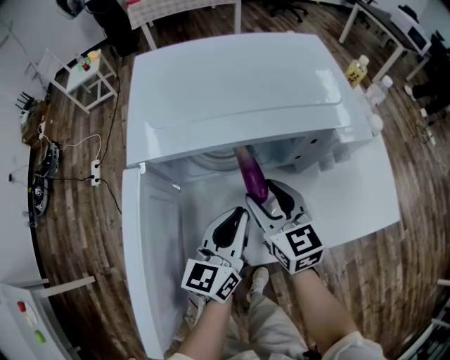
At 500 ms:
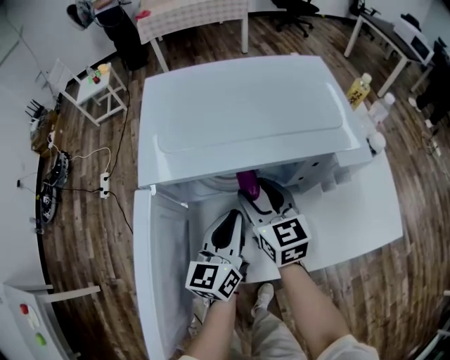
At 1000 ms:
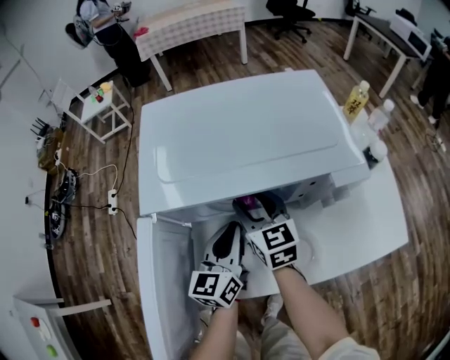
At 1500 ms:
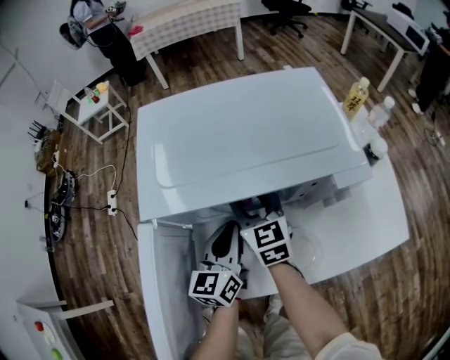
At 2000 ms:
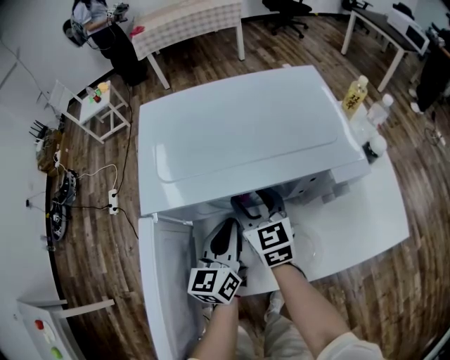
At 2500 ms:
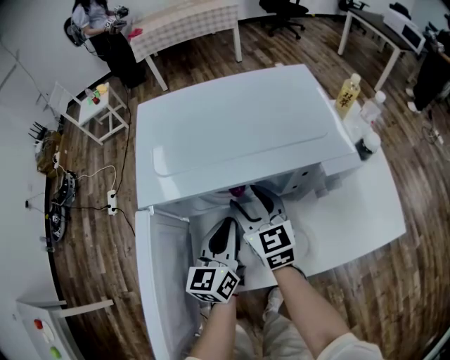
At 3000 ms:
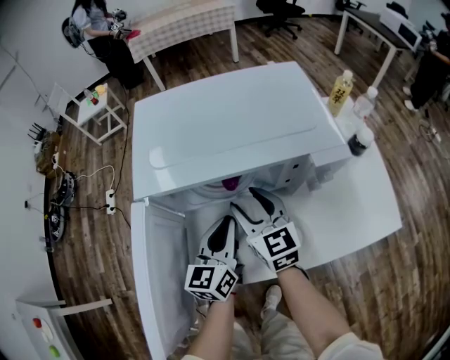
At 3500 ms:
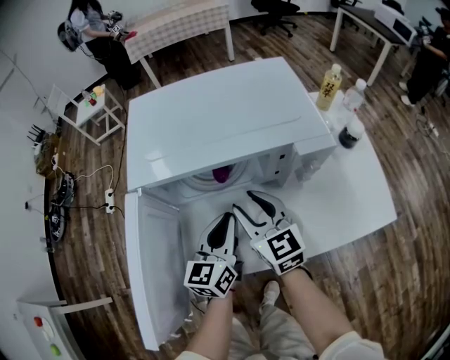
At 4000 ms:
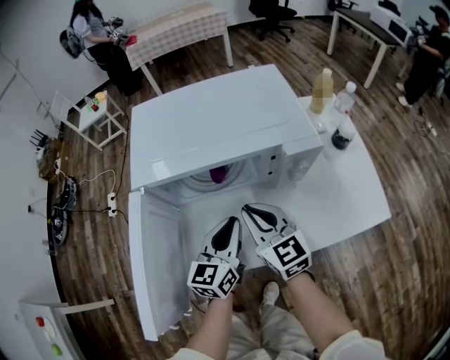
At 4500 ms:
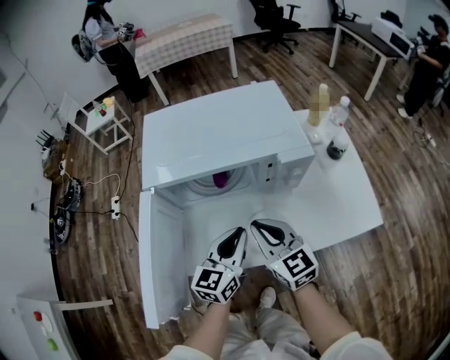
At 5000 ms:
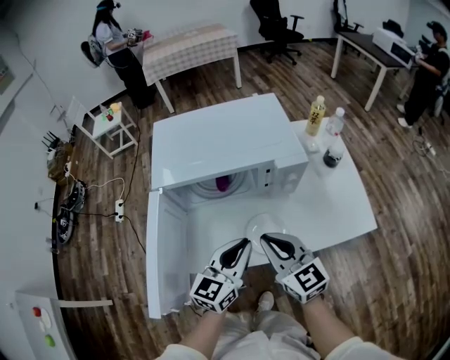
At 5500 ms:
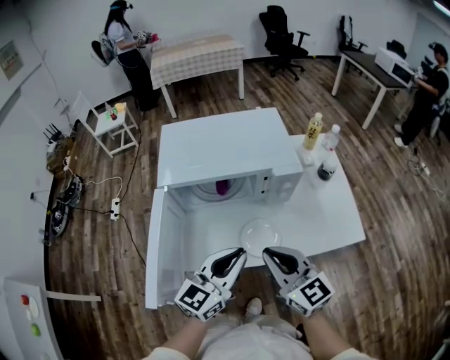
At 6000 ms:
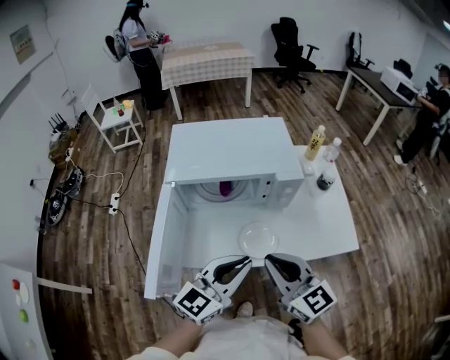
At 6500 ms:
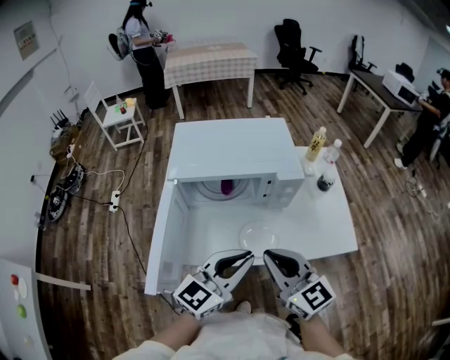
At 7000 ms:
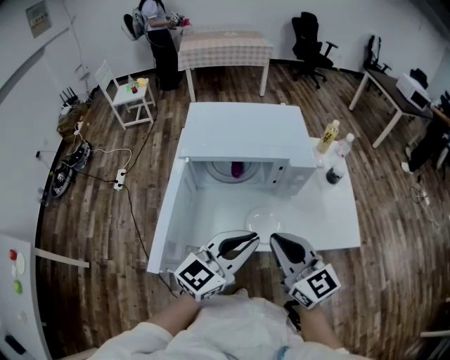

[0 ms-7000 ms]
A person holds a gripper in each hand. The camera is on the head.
0 ms to 2000 ms: Both grippers move forward, about 10 cm.
2000 ms to 3500 ms: The right gripper shifts roughly 10 cm backward, while the left gripper travels backward by some 5 cm.
3500 ms to 5000 ms: Both grippers move backward, upward and to the right, about 15 cm. The right gripper closes its fingers.
5000 ms to 7000 ms: The grippers both shift upward and backward by about 10 cm.

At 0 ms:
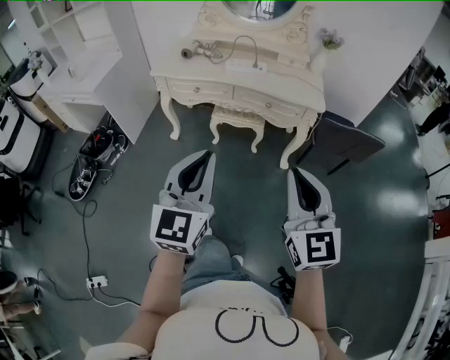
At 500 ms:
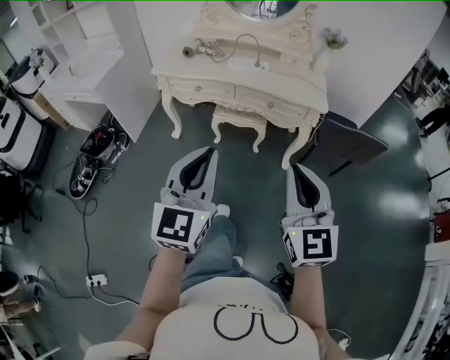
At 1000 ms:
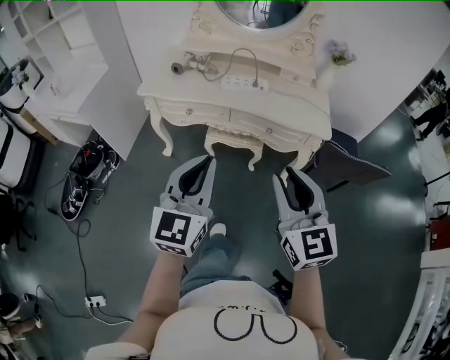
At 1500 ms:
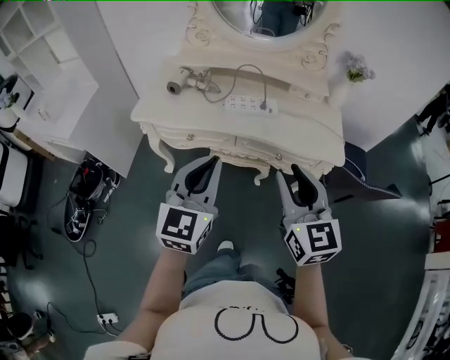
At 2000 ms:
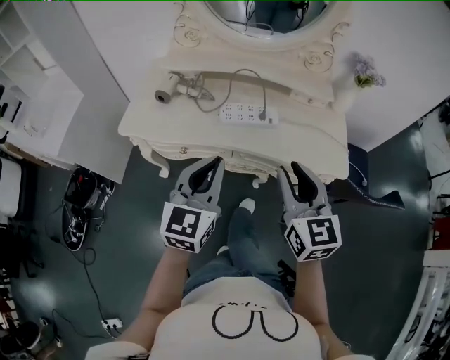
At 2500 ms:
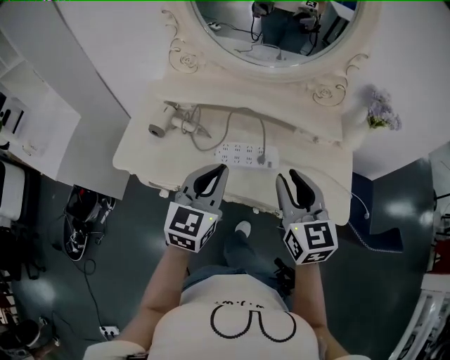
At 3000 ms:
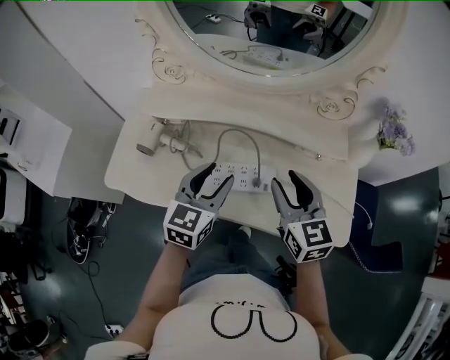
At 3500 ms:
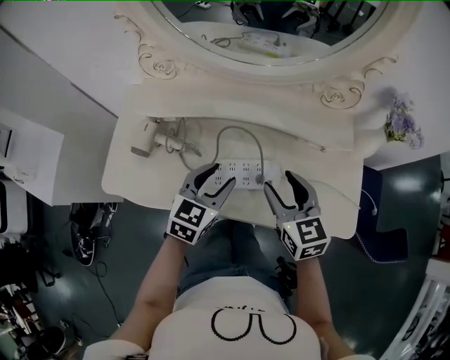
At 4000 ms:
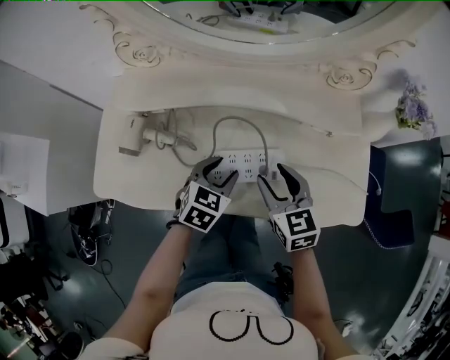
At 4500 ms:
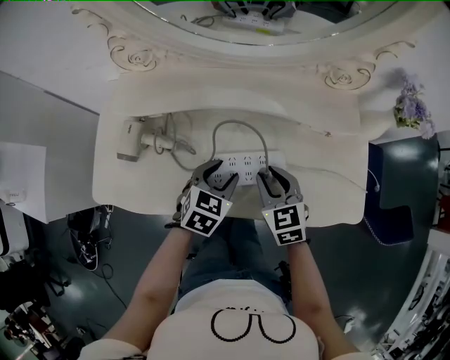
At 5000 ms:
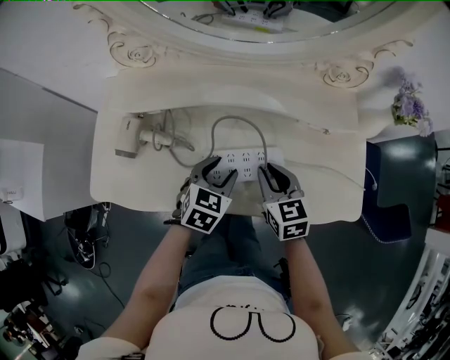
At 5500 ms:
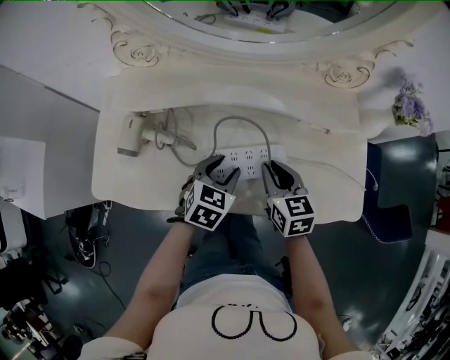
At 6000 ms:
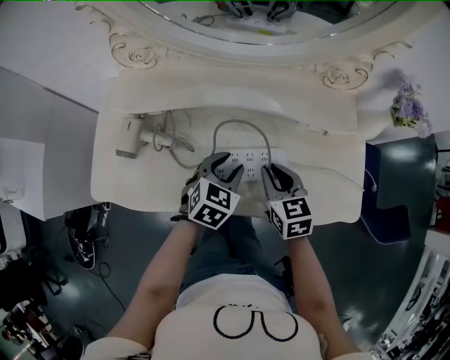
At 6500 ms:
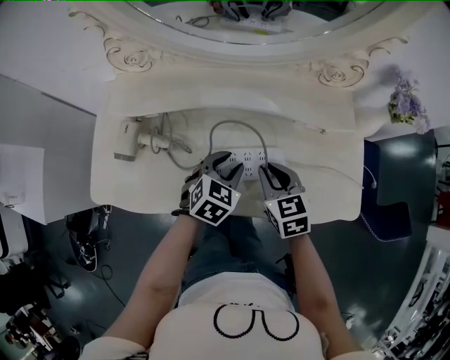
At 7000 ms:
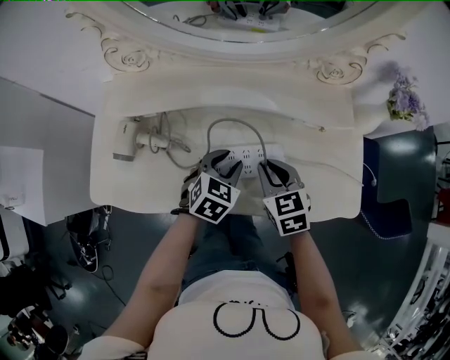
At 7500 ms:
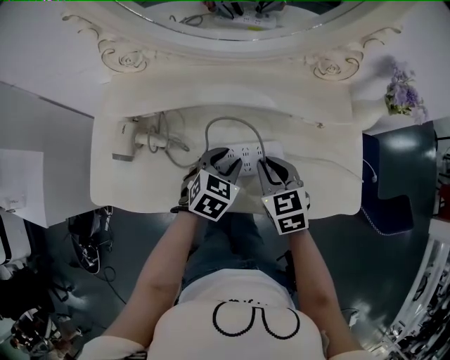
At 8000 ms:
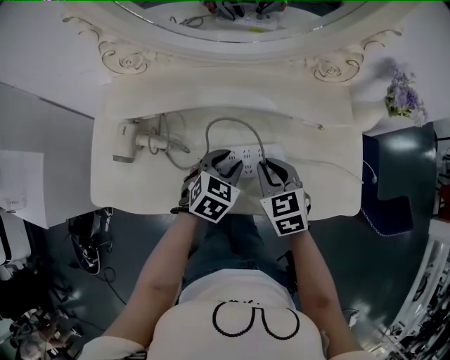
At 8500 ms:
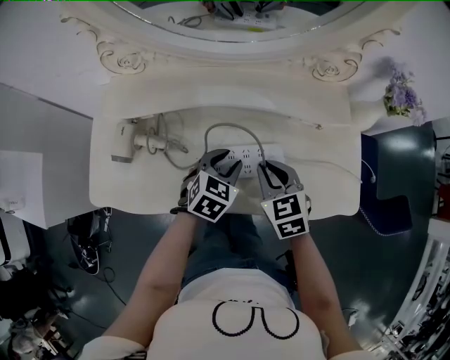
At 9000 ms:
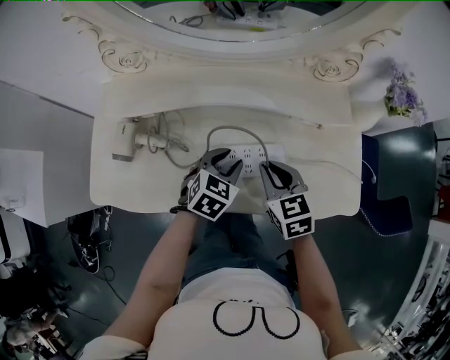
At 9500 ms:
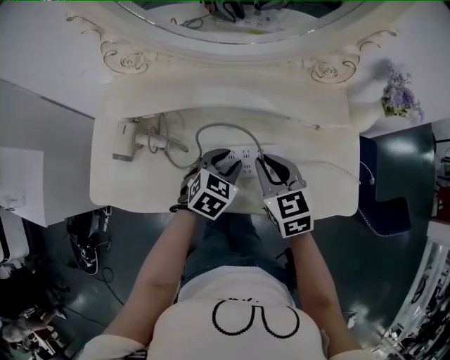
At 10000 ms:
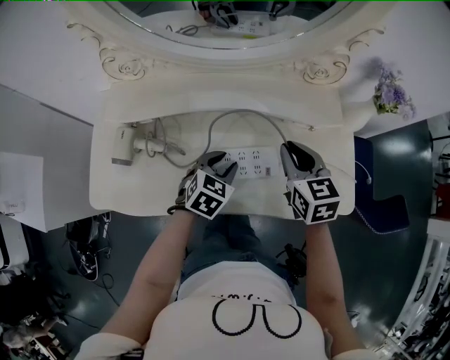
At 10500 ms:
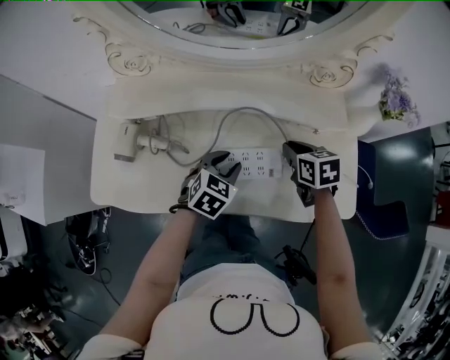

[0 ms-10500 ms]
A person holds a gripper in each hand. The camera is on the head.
0 ms to 2000 ms: The two grippers travel together, forward, some 50 cm. The right gripper opens.
2000 ms to 4000 ms: Both grippers travel together forward and downward, about 35 cm. The left gripper points its fingers roughly 40 degrees further downward, and opens up, while the right gripper swivels some 20 degrees, and opens its fingers.
4000 ms to 6500 ms: The right gripper closes.
6500 ms to 8500 ms: The grippers move only a little.
8500 ms to 10500 ms: The right gripper moves forward and to the right, some 10 cm, moves about 5 cm upward and comes back, and turns by roughly 20 degrees.

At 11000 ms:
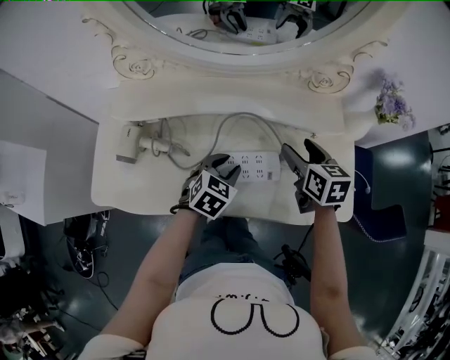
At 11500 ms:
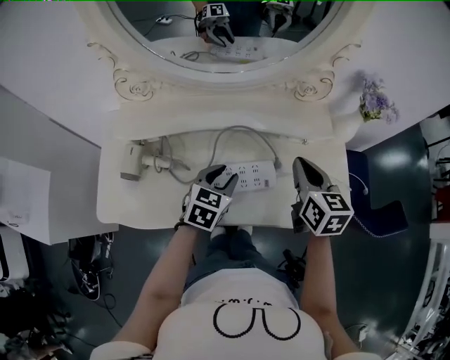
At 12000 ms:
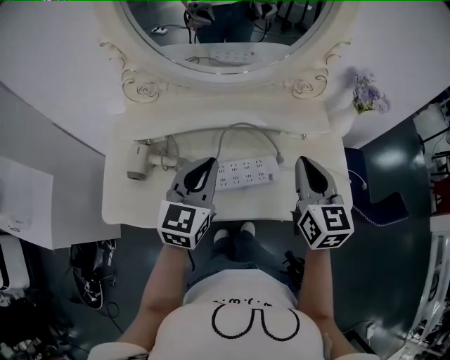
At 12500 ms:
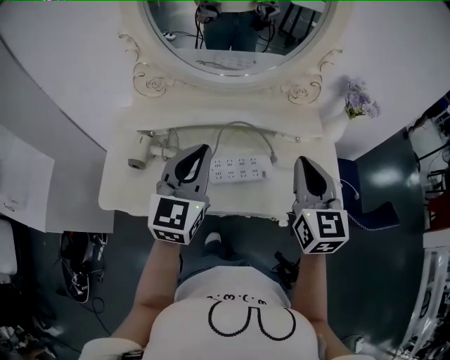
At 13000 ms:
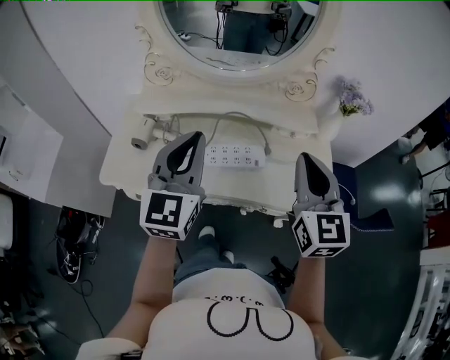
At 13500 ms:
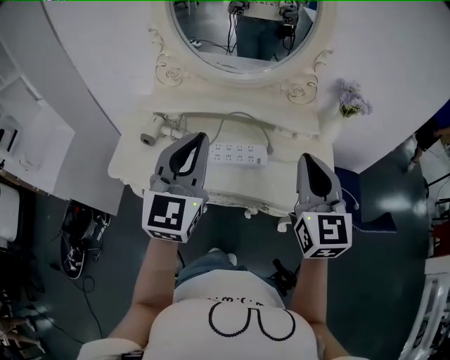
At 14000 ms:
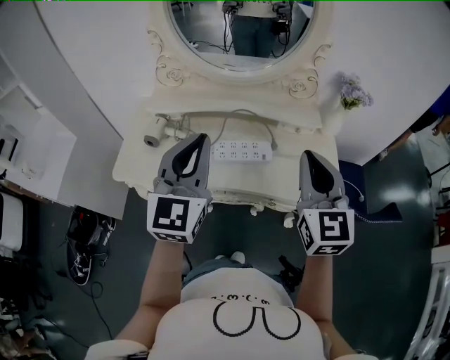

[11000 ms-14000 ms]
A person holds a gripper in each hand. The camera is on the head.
11000 ms to 12500 ms: The right gripper heads upward and backward, covering some 25 cm, turns by roughly 30 degrees, and closes its fingers; the left gripper shifts some 25 cm upward, points its fingers roughly 40 degrees further upward, and closes up.
12500 ms to 14000 ms: Both grippers move backward and upward, about 15 cm.

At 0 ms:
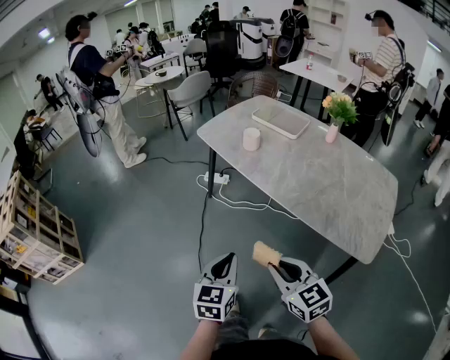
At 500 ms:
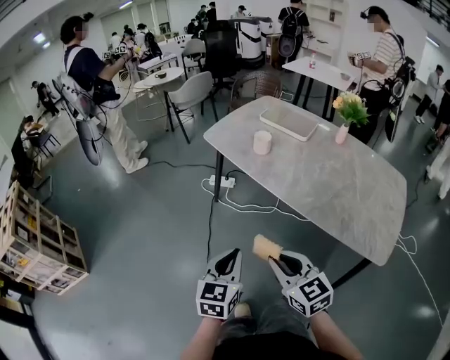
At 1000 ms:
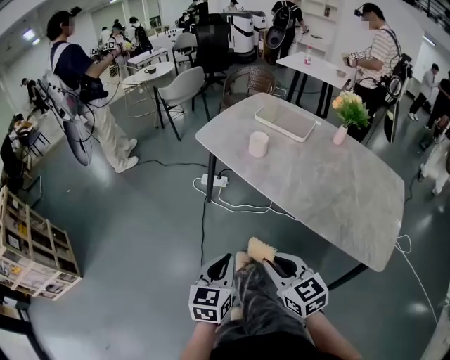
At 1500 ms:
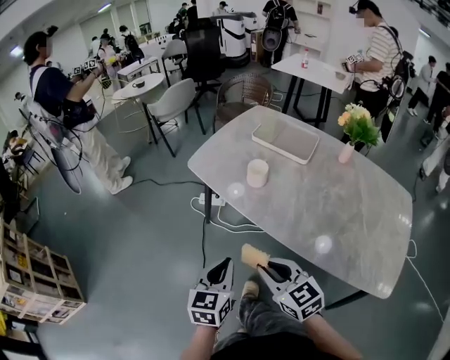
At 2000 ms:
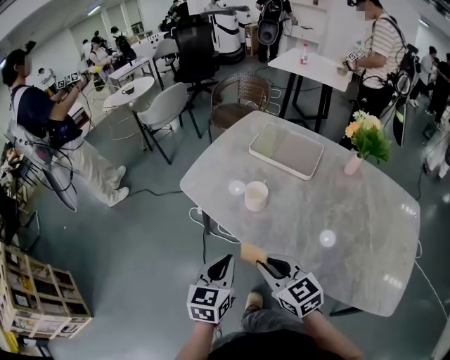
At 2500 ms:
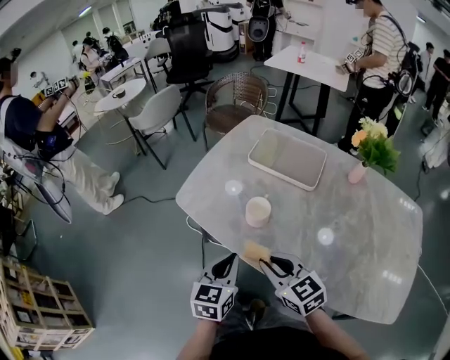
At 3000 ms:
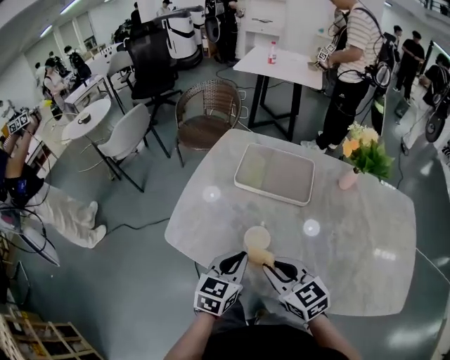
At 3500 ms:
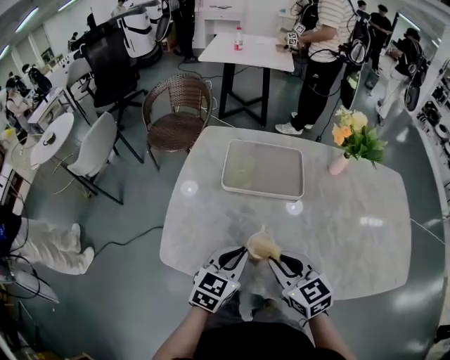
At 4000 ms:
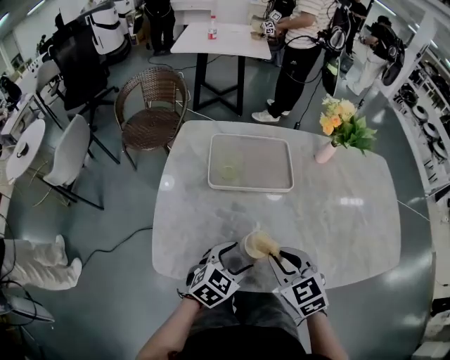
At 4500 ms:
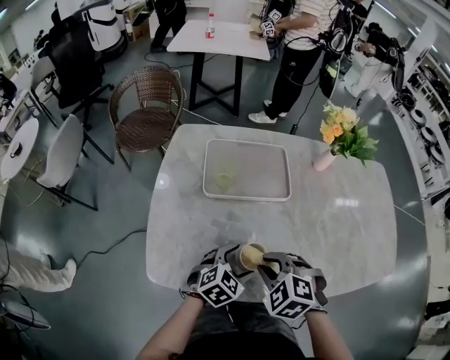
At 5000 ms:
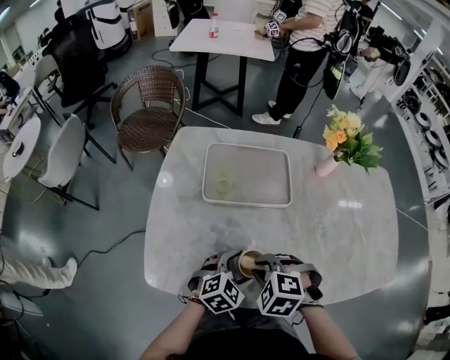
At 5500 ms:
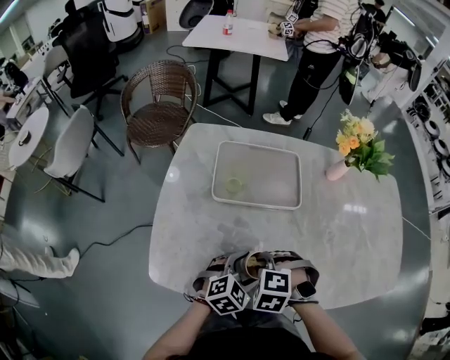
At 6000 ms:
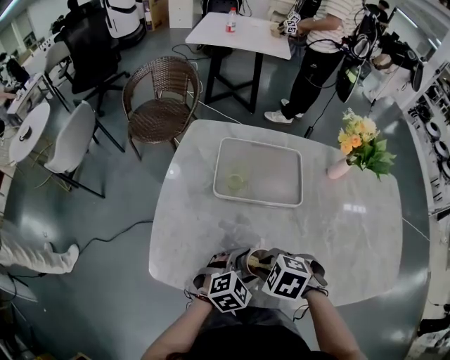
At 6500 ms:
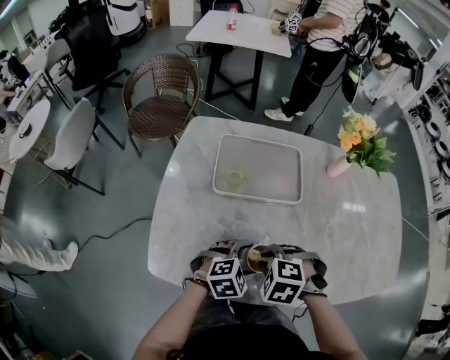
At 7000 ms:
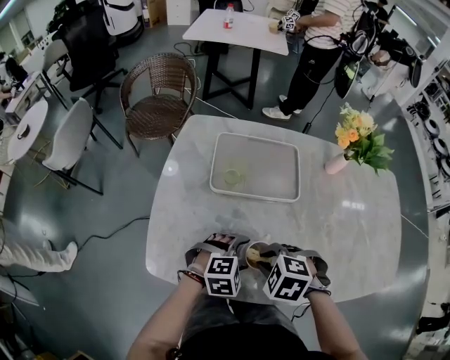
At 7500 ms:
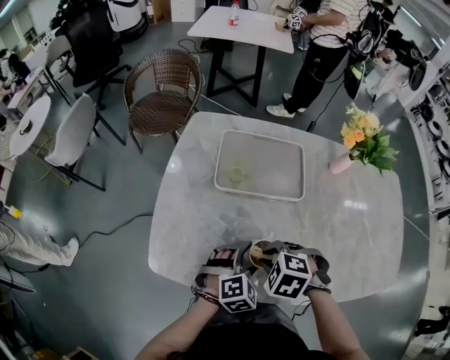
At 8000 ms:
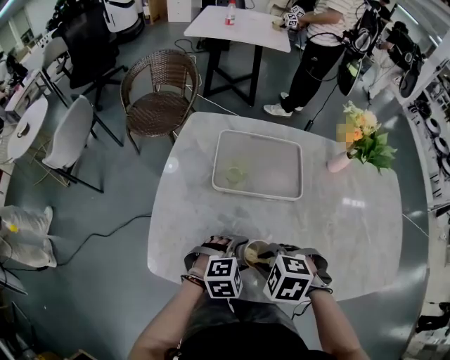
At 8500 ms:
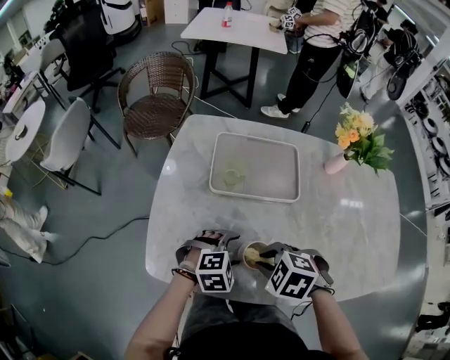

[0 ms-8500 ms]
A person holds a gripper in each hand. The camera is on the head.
0 ms to 2000 ms: The two grippers go about 35 cm forward.
2000 ms to 4000 ms: The right gripper ends up about 20 cm from where it was, and turns by about 40 degrees. Meanwhile the left gripper ends up about 20 cm from where it was, changes its angle by roughly 70 degrees, and opens up.
4000 ms to 6500 ms: The right gripper heads downward, covering roughly 5 cm, and tilts its fingers roughly 40 degrees downward. The left gripper shifts by approximately 5 cm, and rotates about 30 degrees.
6500 ms to 8500 ms: There are only small adjustments of the grippers.
